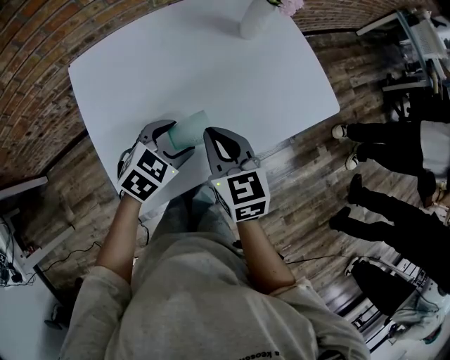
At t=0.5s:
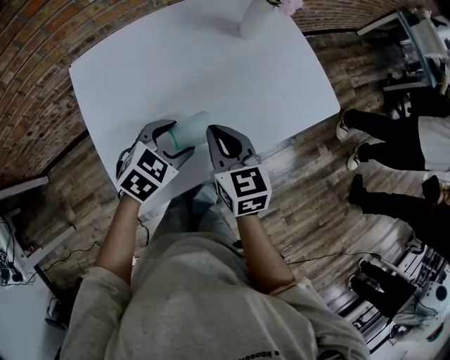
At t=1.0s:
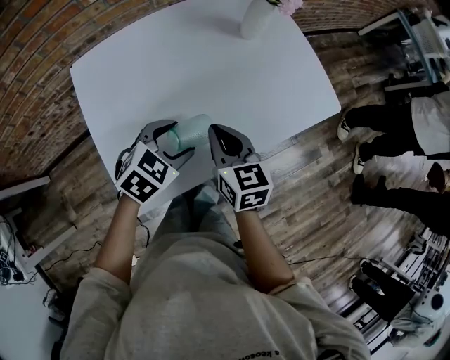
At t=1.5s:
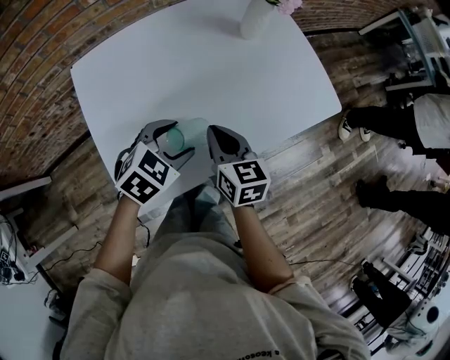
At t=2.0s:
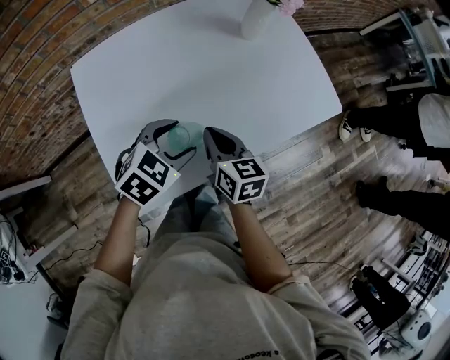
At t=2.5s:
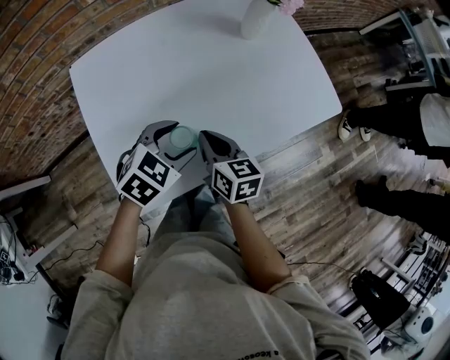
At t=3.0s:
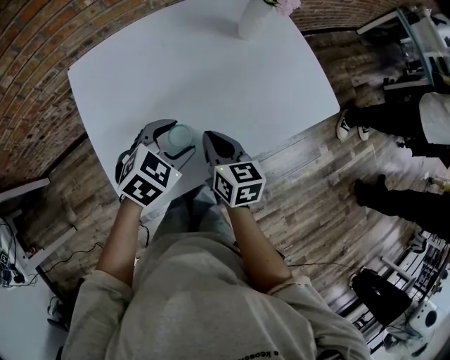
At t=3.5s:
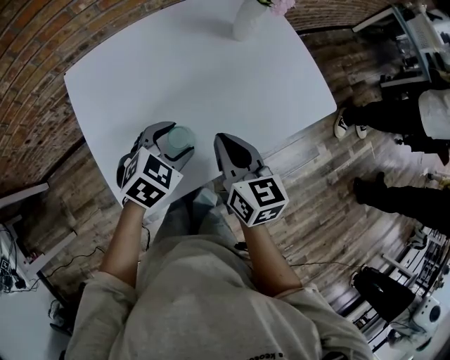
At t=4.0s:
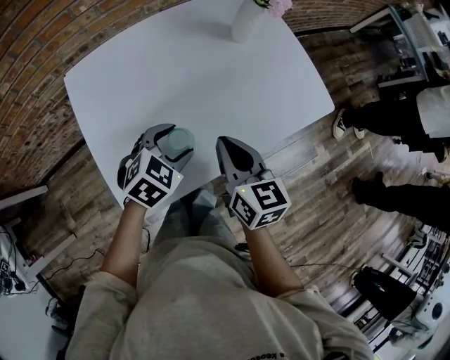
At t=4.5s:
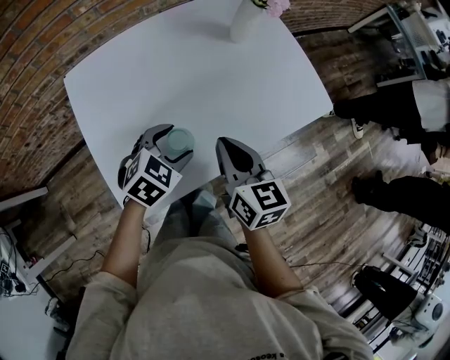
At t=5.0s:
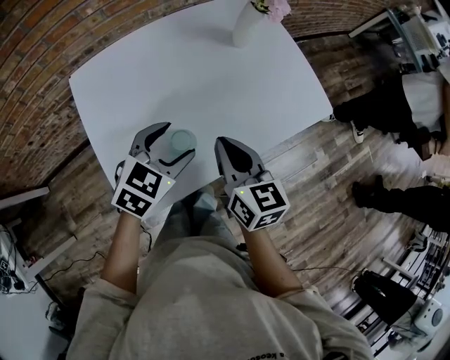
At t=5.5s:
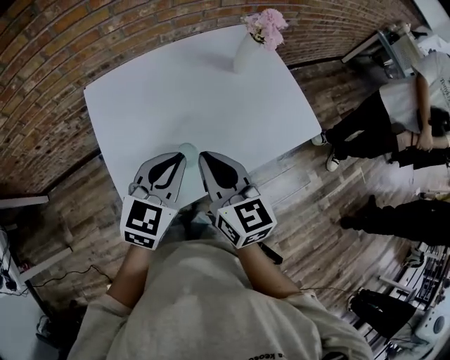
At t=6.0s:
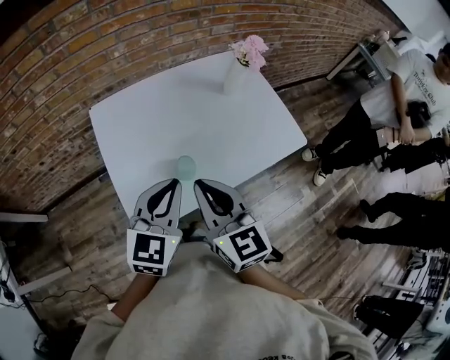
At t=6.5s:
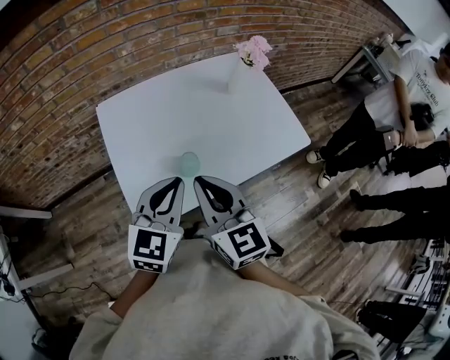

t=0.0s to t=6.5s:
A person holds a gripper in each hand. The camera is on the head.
t=0.0s to t=2.0s: The right gripper goes about 5 cm downward, and turns by some 20 degrees.
t=2.0s to t=4.5s: The right gripper goes approximately 5 cm upward.
t=4.5s to t=6.5s: The right gripper shifts roughly 20 cm upward, backward and to the left, and changes its angle by approximately 20 degrees. The left gripper travels upward and backward by some 25 cm, points its fingers some 30 degrees further upward, and closes its fingers.

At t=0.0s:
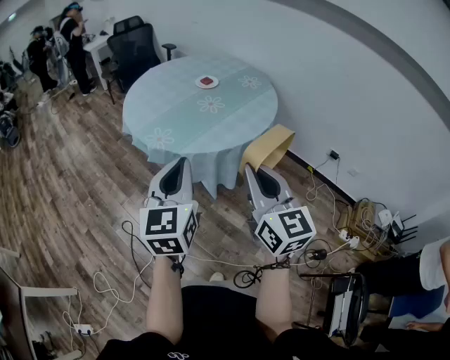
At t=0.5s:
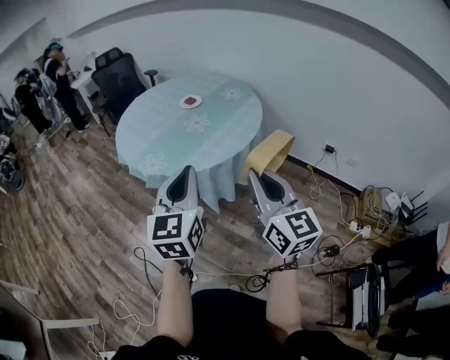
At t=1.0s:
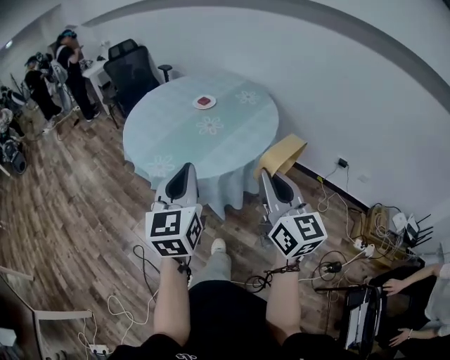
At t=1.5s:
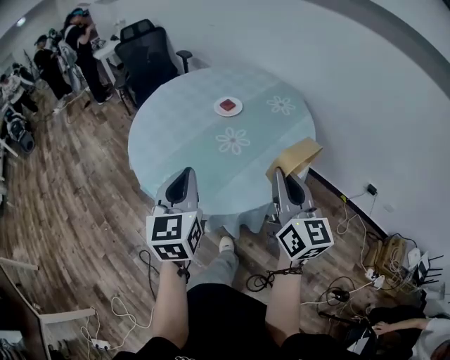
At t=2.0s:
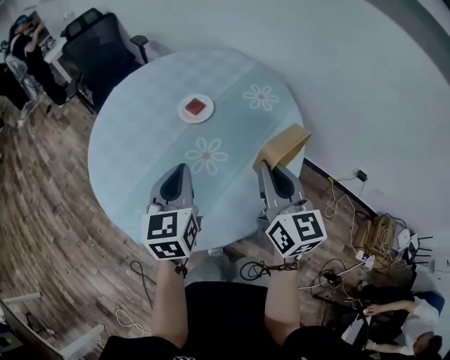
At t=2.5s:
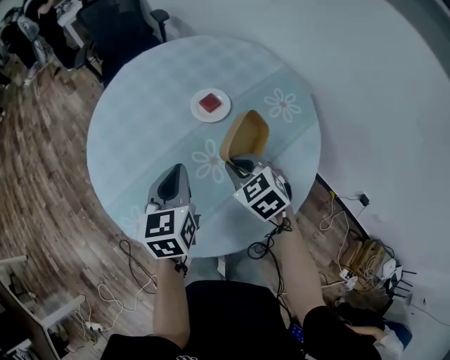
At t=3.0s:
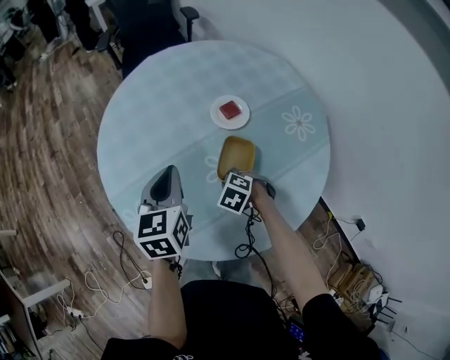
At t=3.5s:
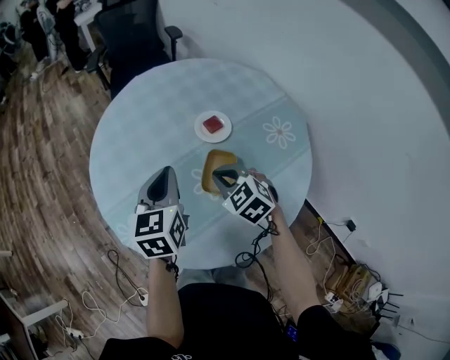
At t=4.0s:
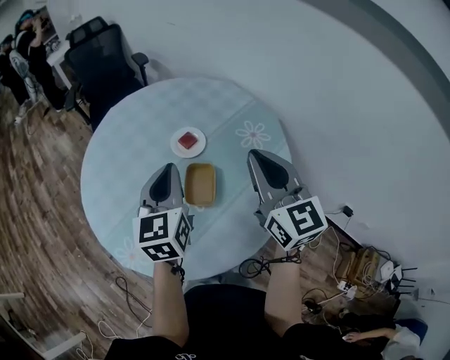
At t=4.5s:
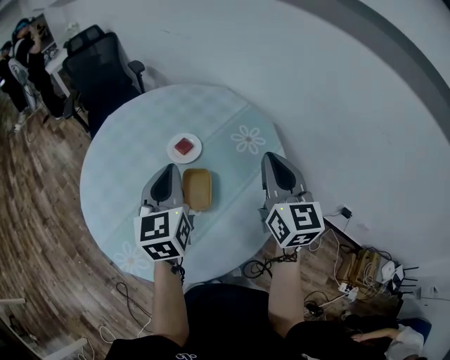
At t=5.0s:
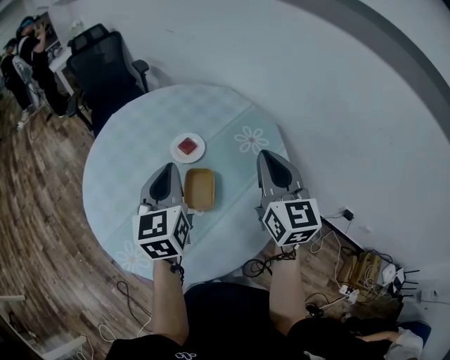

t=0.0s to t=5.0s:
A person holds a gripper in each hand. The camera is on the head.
t=0.0s to t=2.5s: Both grippers are carried forward, about 60 cm. The left gripper swivels some 30 degrees, while the right gripper points its fingers about 50 degrees further downward.
t=2.5s to t=5.0s: The left gripper is displaced upward by about 10 cm. Meanwhile the right gripper travels upward by roughly 25 cm, and tips its fingers upward by roughly 40 degrees.

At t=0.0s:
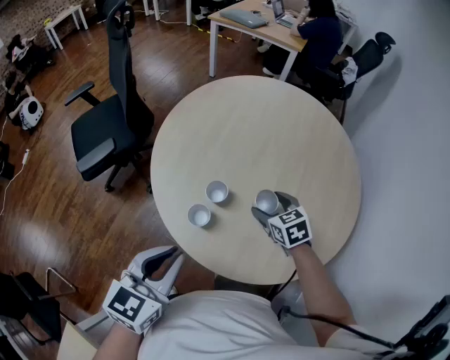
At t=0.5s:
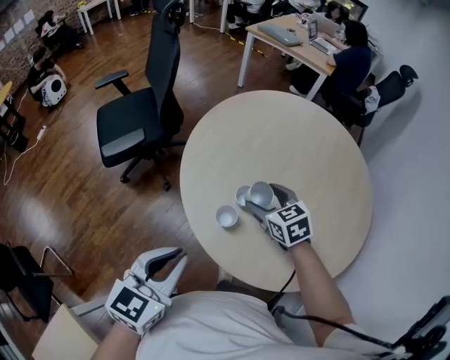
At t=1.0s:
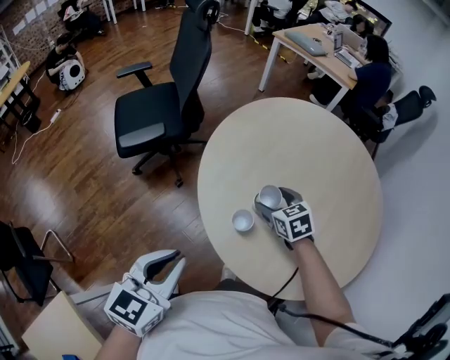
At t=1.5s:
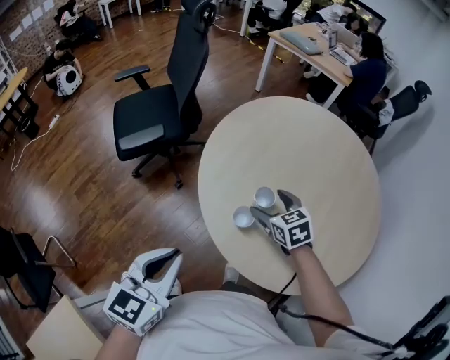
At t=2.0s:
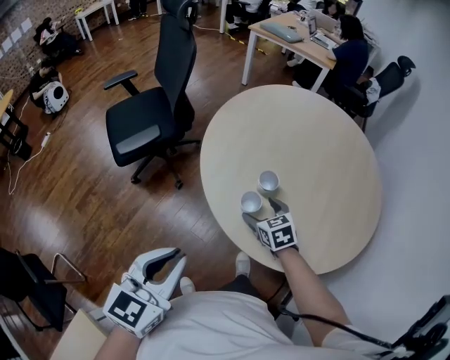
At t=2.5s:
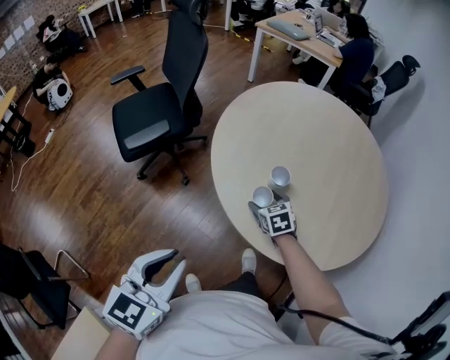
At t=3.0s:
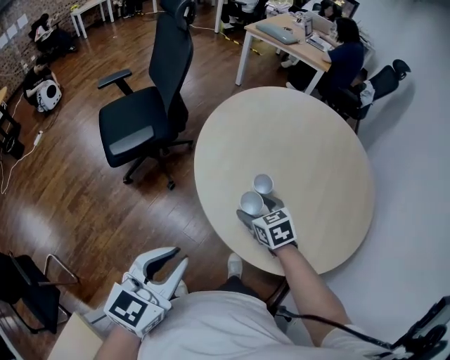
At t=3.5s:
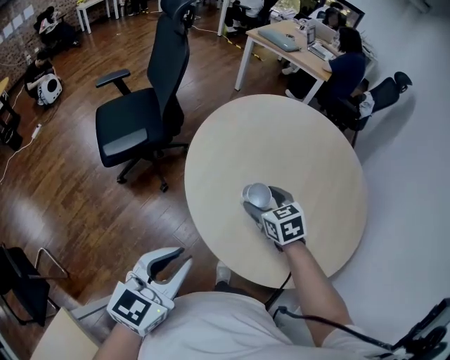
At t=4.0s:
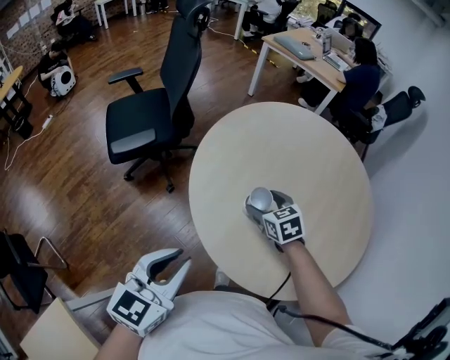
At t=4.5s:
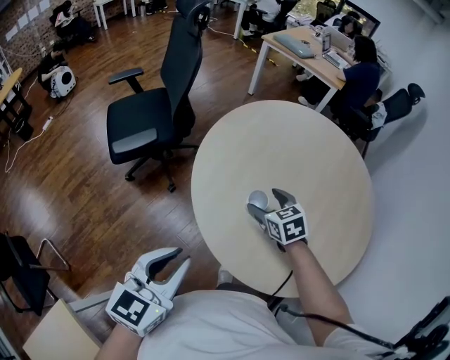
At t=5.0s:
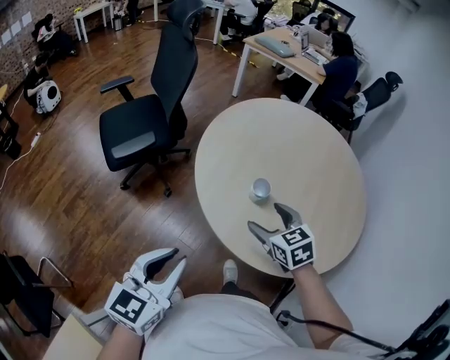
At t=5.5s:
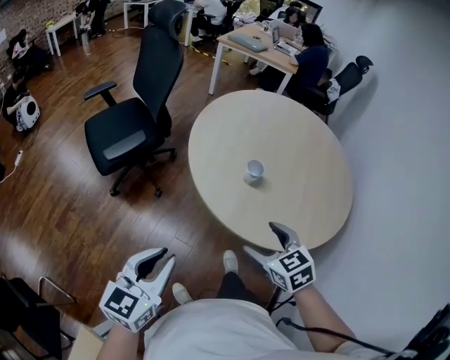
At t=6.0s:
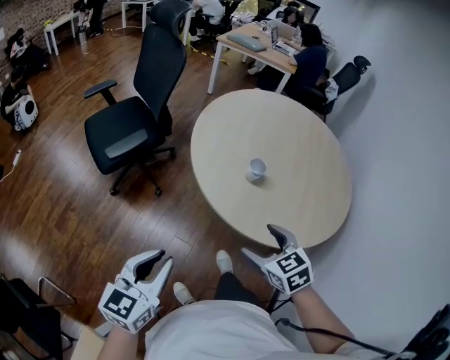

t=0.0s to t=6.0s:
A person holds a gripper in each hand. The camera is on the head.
t=0.0s to t=2.0s: The right gripper goes roughly 20 cm to the left. Meanwhile the left gripper goes roughly 15 cm to the left and backward.
t=2.0s to t=4.0s: The left gripper heads to the right, covering about 5 cm. Meanwhile the right gripper shifts some 10 cm forward and upward.
t=4.0s to t=6.0s: The left gripper is displaced to the left and backward by some 20 cm; the right gripper moves backward, roughly 30 cm.

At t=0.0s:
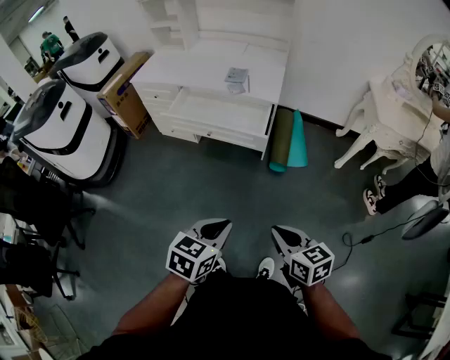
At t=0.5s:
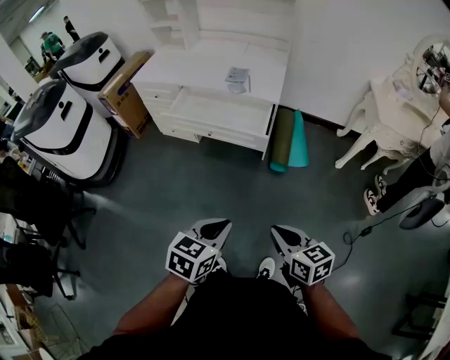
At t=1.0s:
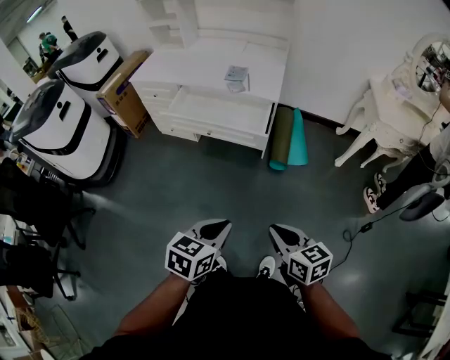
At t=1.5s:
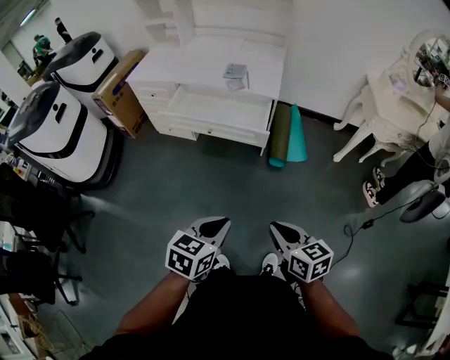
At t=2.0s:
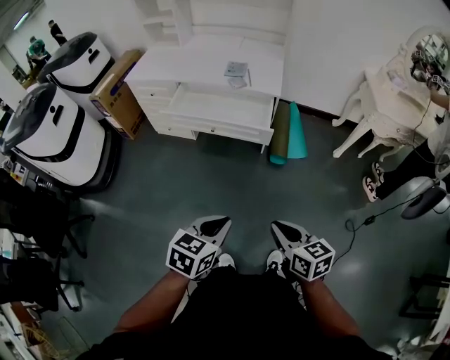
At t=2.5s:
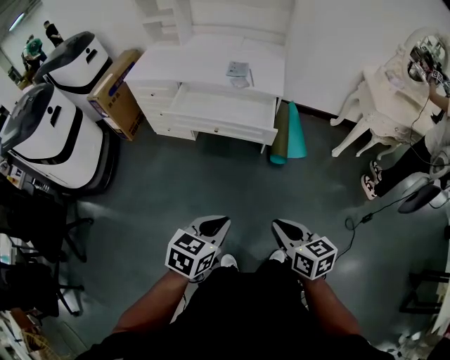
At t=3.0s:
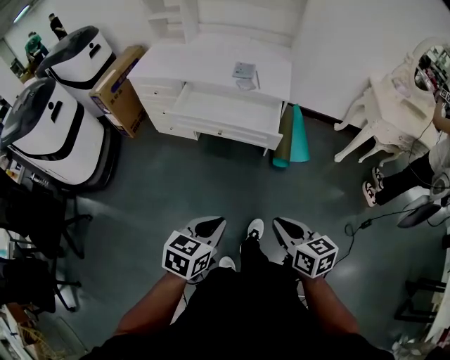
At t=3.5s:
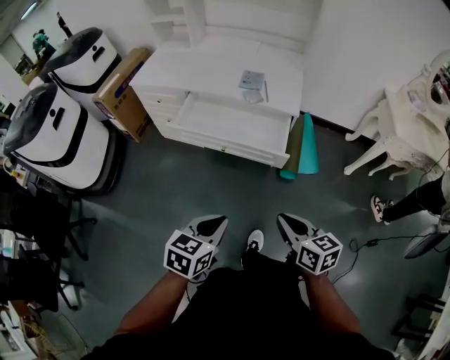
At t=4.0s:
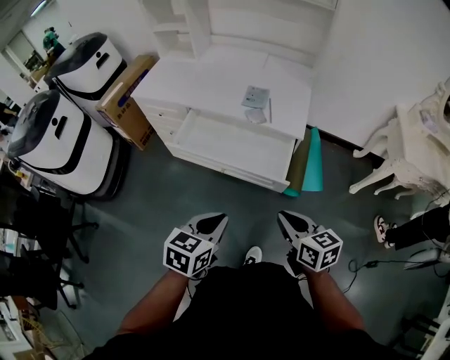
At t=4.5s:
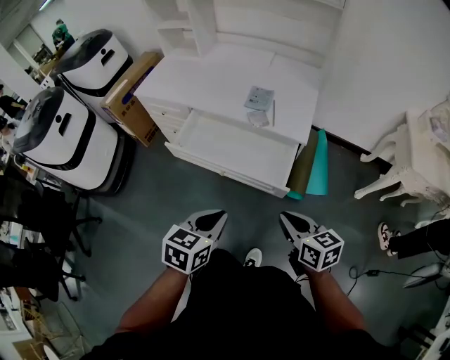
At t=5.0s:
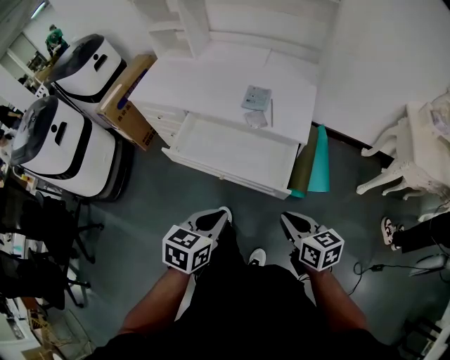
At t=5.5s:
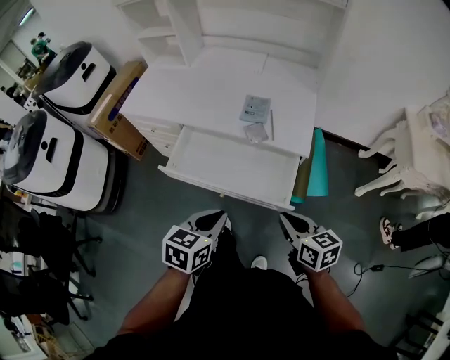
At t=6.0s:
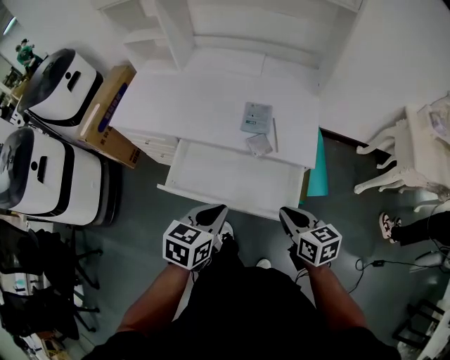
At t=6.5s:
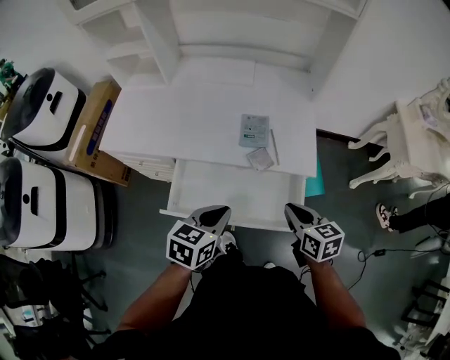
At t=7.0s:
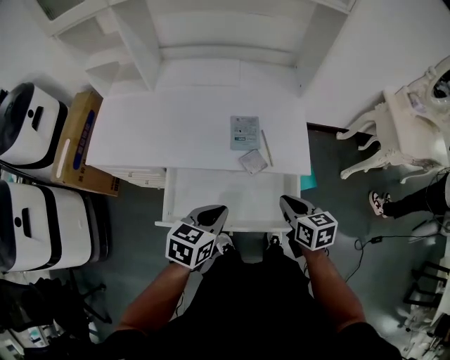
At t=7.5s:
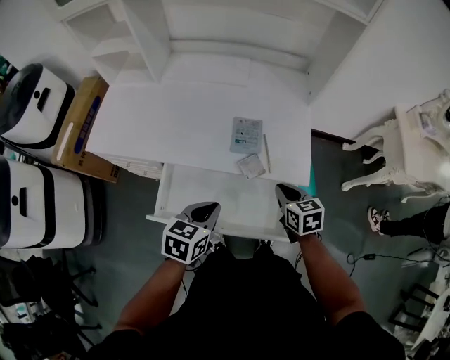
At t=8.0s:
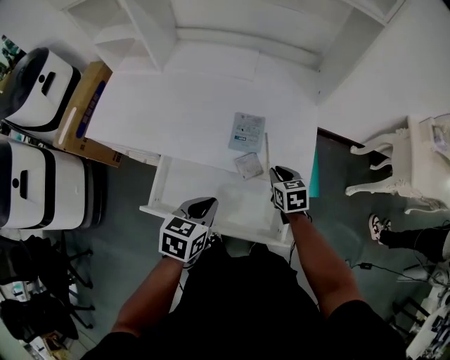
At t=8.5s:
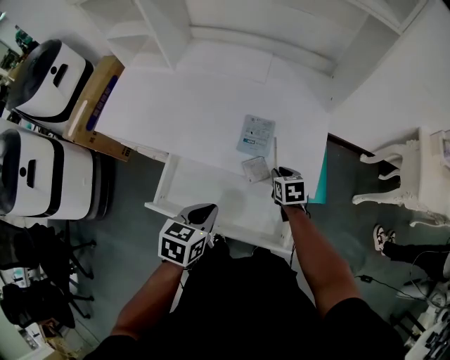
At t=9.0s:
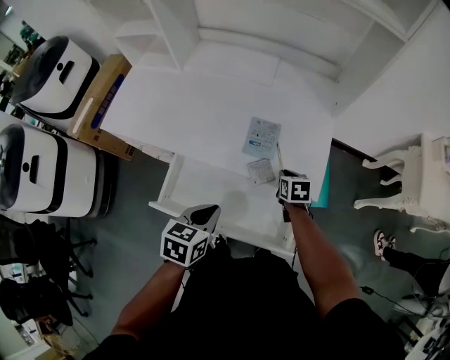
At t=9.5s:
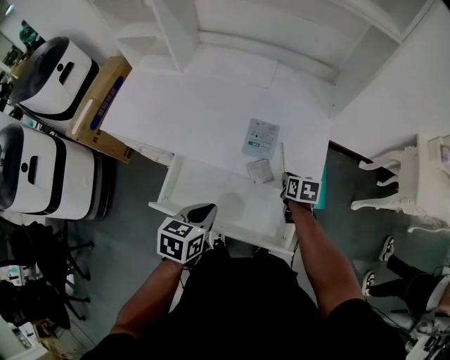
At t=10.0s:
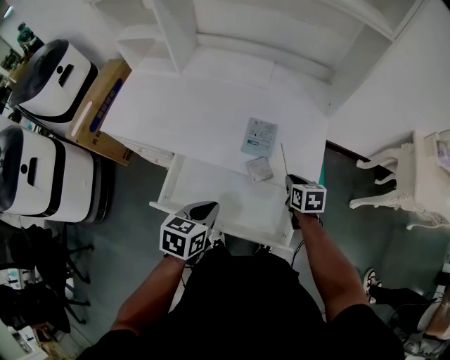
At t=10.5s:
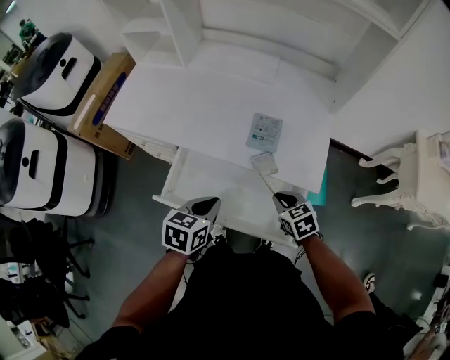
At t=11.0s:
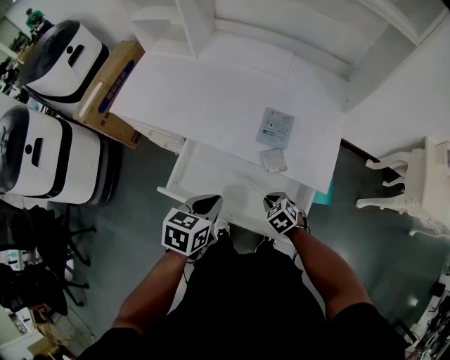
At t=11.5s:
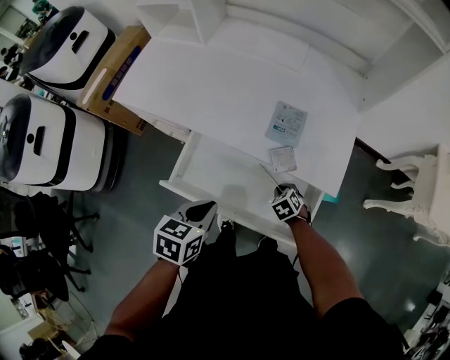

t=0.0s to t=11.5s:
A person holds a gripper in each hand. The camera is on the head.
t=0.0s to t=2.0s: The grippers both shift to the left by some 5 cm.
t=2.0s to t=4.0s: The two grippers go some 25 cm forward.
t=4.0s to t=6.0s: Both grippers move forward, approximately 20 cm.
t=6.0s to t=7.5s: Both grippers travel together forward, some 15 cm.
t=7.5s to t=9.5s: The right gripper moves forward and downward, some 15 cm.
t=9.5s to t=11.5s: The left gripper changes place by some 5 cm, while the right gripper shifts about 20 cm downward, backward and to the left, and rotates around the line of its fingers by roughly 50 degrees, counterclockwise from behind.
